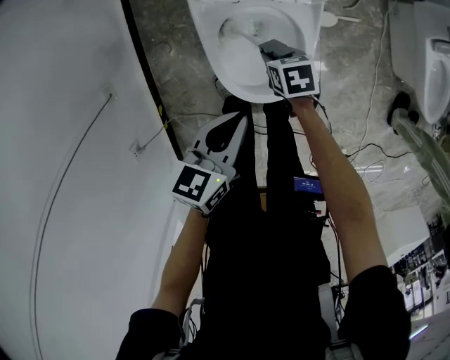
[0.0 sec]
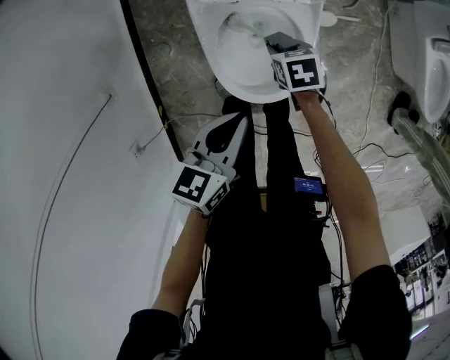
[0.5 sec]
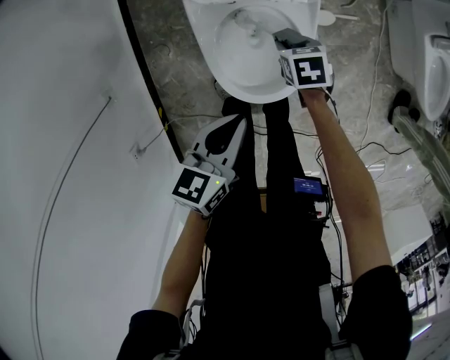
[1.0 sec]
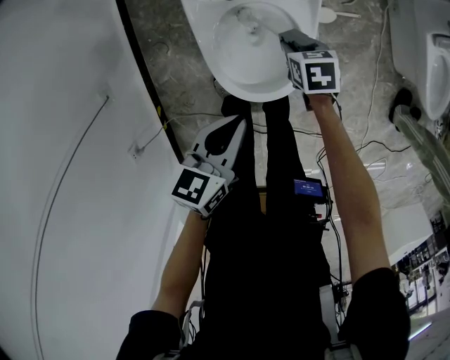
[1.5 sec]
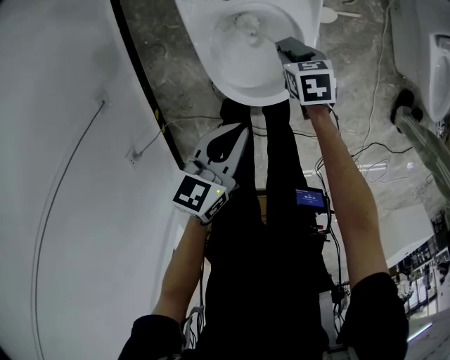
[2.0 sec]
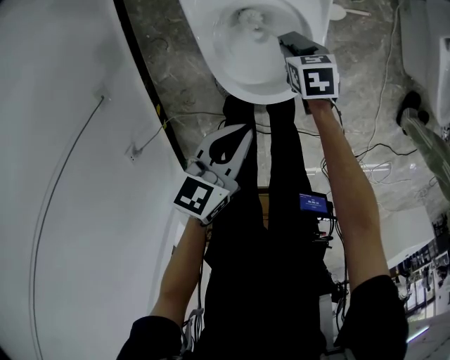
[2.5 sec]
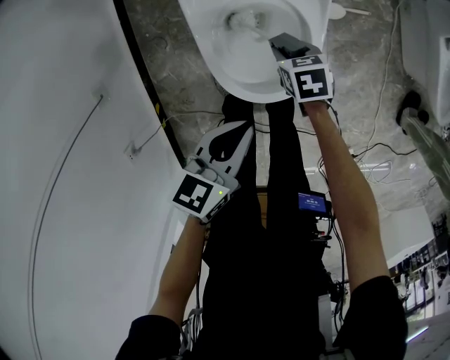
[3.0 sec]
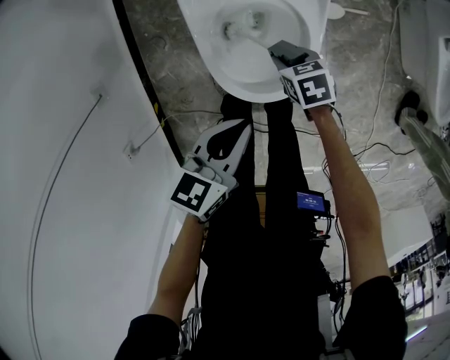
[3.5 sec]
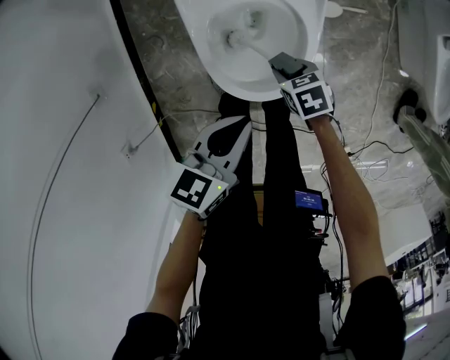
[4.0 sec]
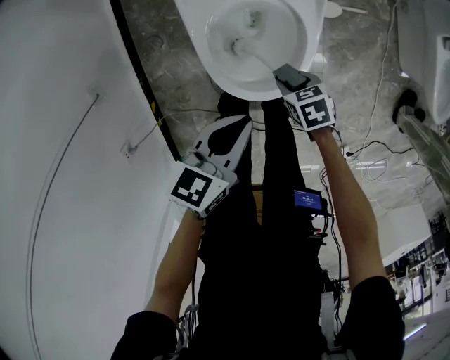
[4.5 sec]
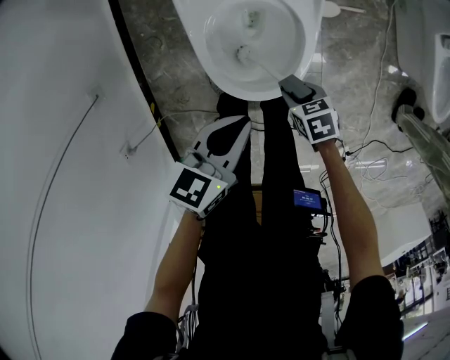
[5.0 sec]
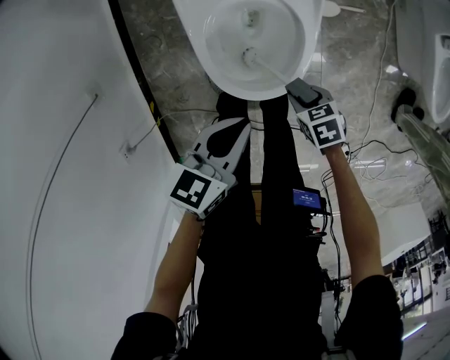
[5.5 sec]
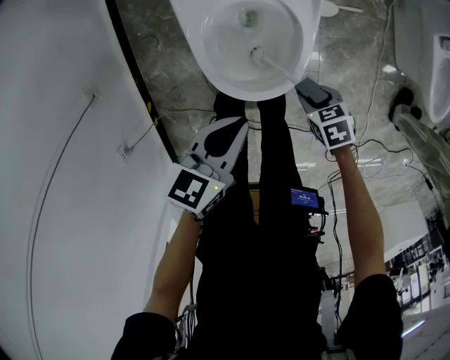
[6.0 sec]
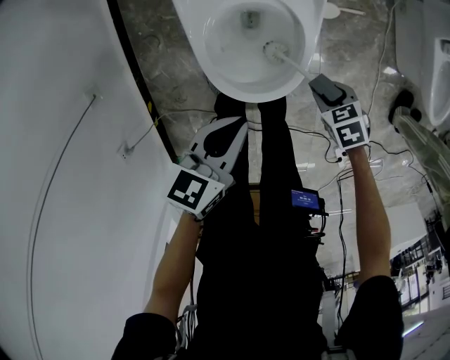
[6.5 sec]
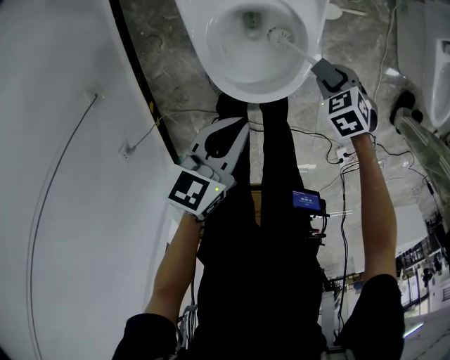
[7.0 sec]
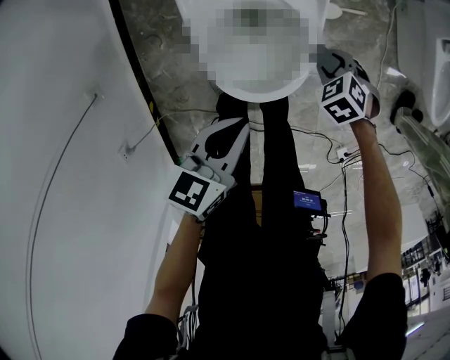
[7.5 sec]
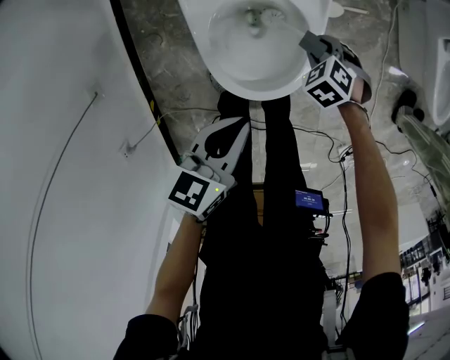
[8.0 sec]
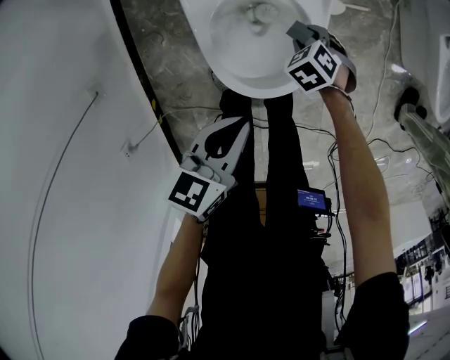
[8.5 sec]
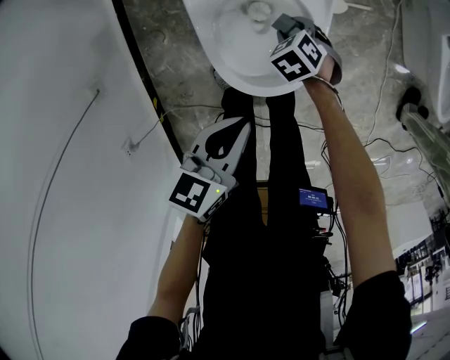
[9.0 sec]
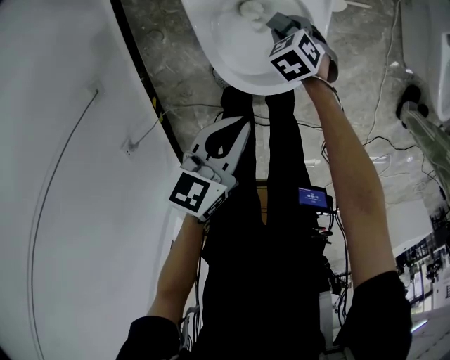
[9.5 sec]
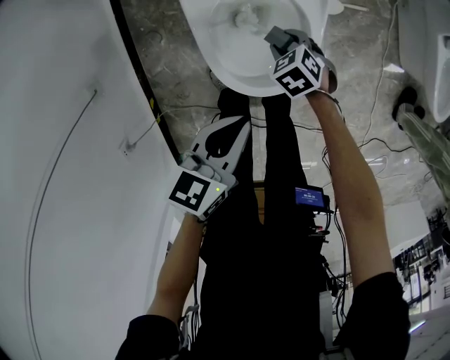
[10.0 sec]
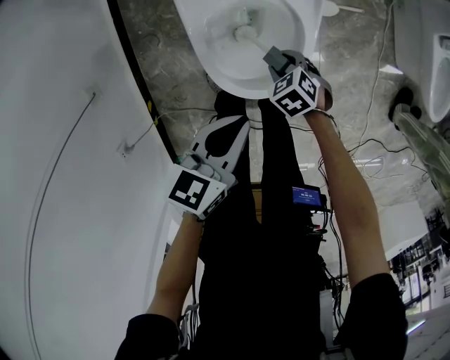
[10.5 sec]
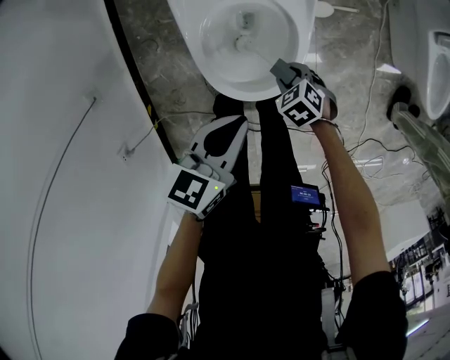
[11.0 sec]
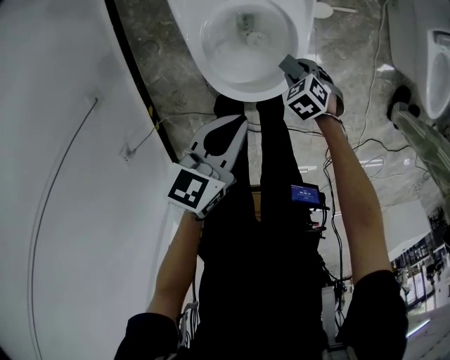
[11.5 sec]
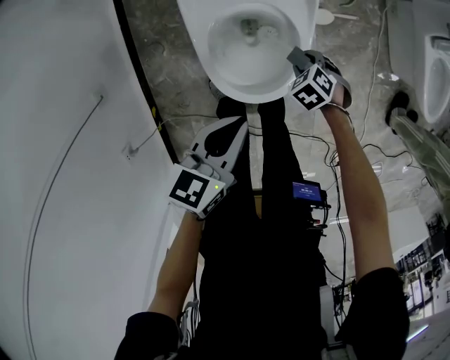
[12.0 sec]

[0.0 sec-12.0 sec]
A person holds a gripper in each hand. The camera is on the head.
0.0 sec to 2.0 sec: The right gripper travels to the right by some 5 cm.
2.0 sec to 4.0 sec: The right gripper goes some 5 cm backward.
4.0 sec to 6.0 sec: The right gripper is displaced backward and to the right by some 10 cm.
6.0 sec to 8.0 sec: The right gripper shifts by some 15 cm, and changes its angle by about 40 degrees.
8.0 sec to 10.0 sec: The right gripper changes place by roughly 10 cm.
10.0 sec to 12.0 sec: The right gripper ends up about 10 cm from where it was.

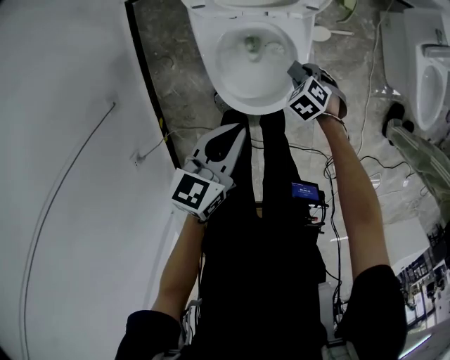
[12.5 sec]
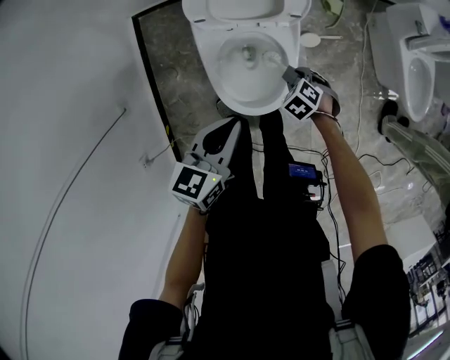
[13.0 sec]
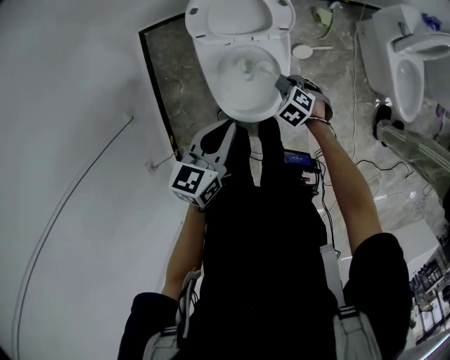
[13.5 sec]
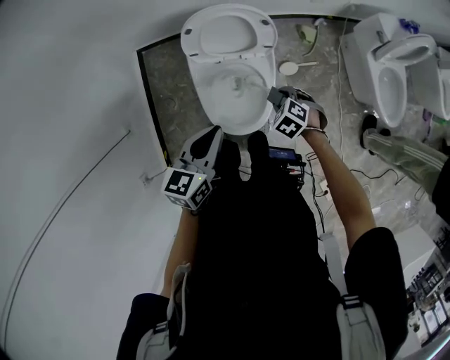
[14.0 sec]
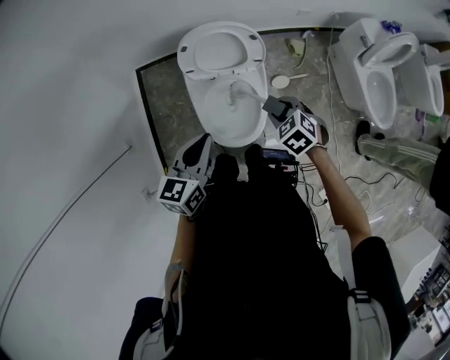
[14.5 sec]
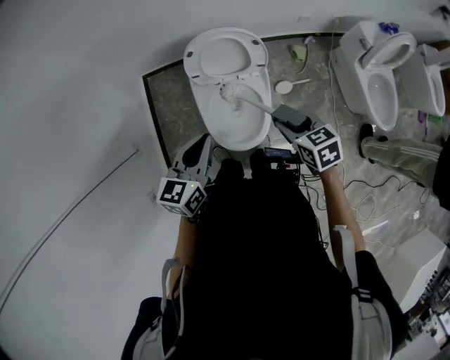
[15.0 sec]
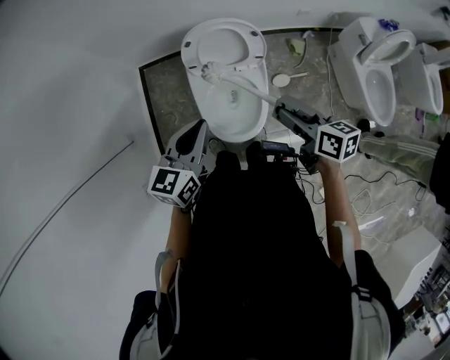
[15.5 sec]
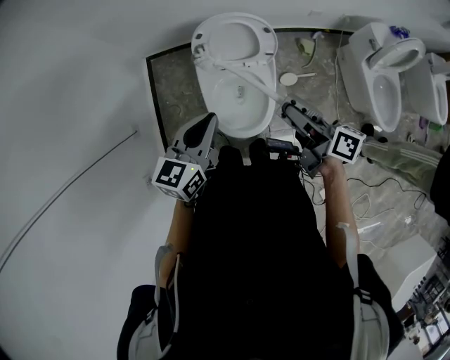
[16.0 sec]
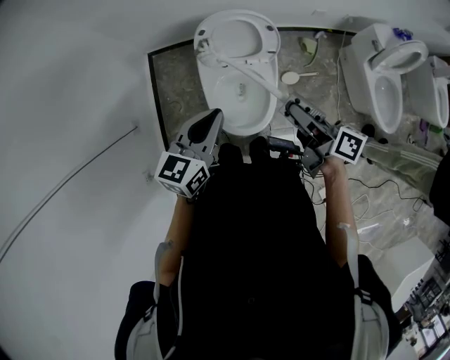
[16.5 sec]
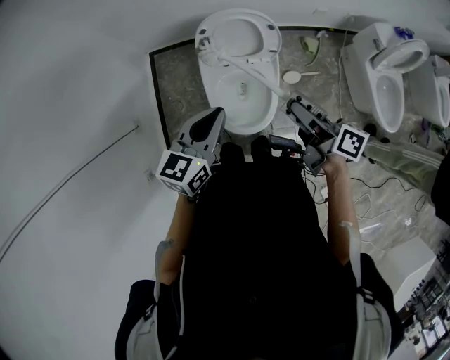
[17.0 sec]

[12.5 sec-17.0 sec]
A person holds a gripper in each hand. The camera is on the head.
12.5 sec to 14.5 sec: The right gripper moves upward, about 30 cm. The left gripper heads upward, covering some 20 cm.
14.5 sec to 17.0 sec: The left gripper goes roughly 5 cm upward, while the right gripper heads upward, covering roughly 15 cm, and angles its fingers upward, by roughly 50 degrees.

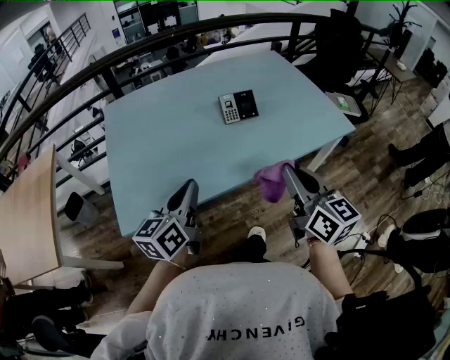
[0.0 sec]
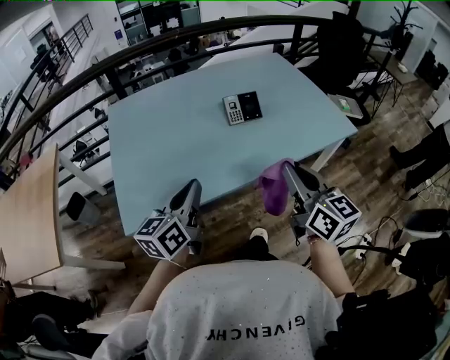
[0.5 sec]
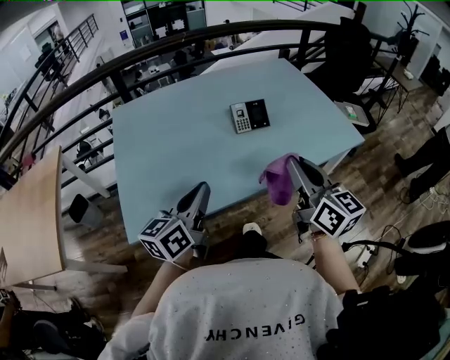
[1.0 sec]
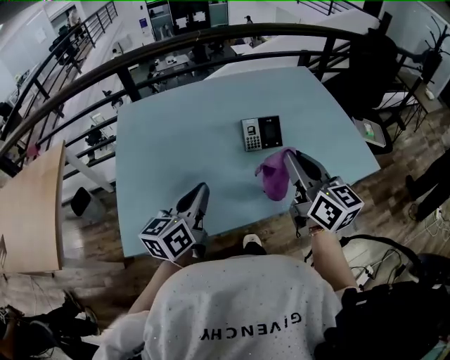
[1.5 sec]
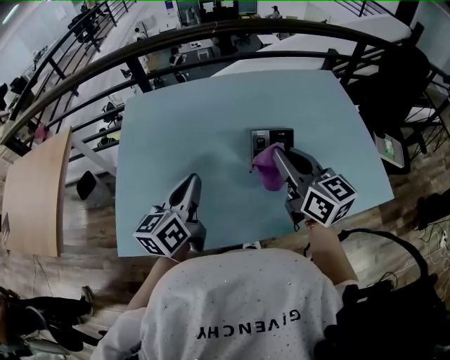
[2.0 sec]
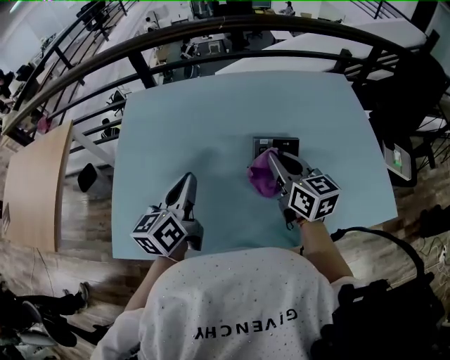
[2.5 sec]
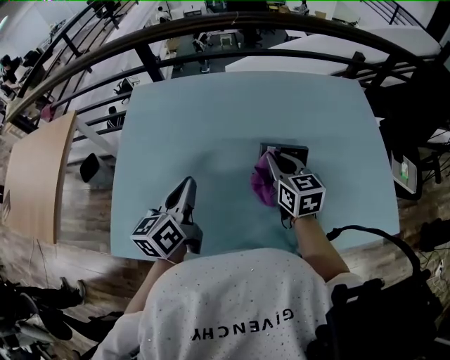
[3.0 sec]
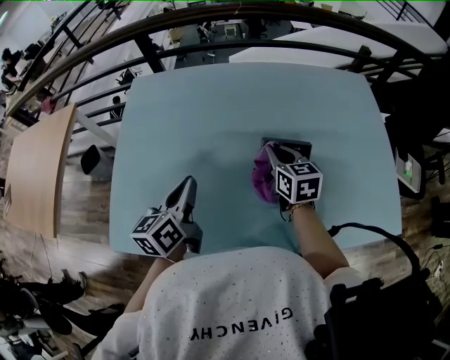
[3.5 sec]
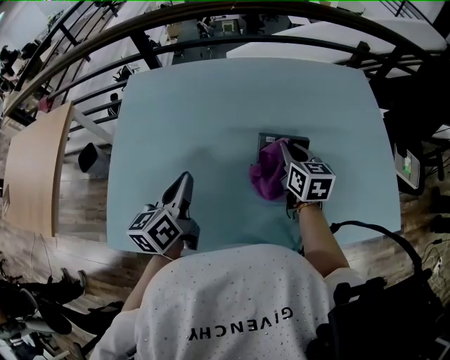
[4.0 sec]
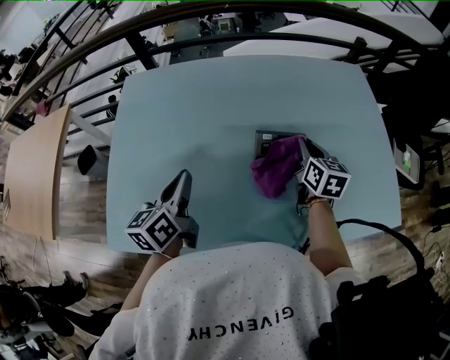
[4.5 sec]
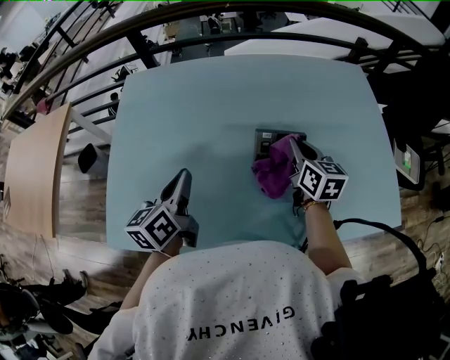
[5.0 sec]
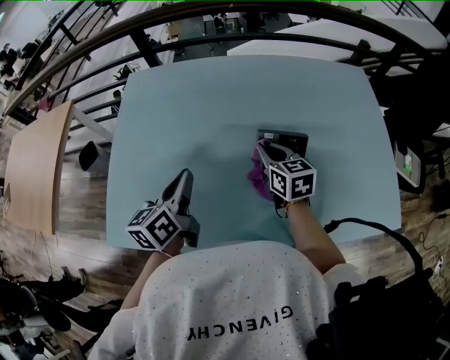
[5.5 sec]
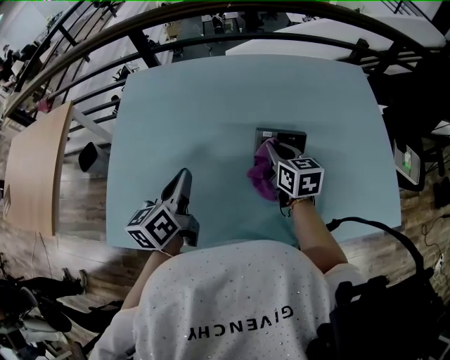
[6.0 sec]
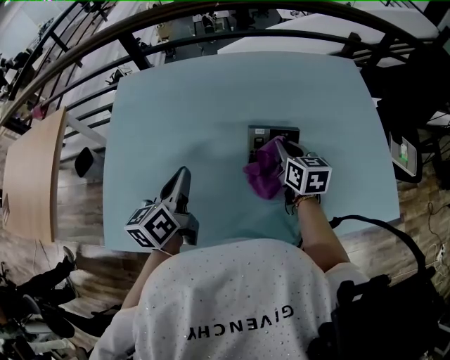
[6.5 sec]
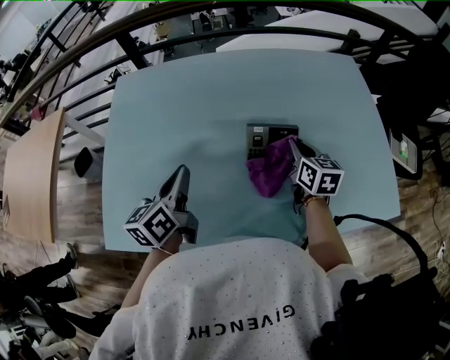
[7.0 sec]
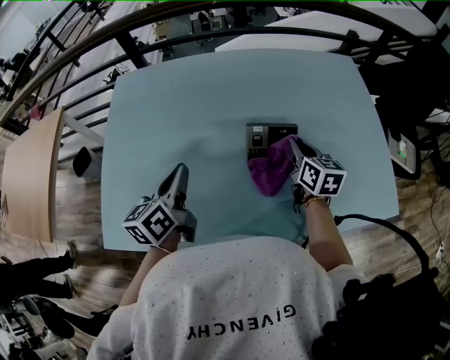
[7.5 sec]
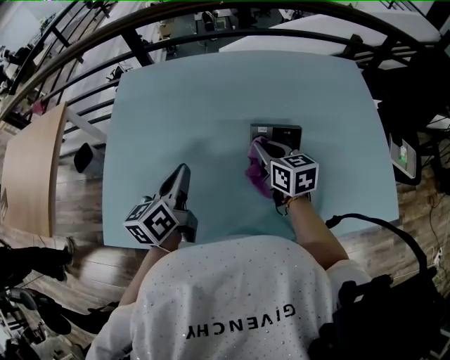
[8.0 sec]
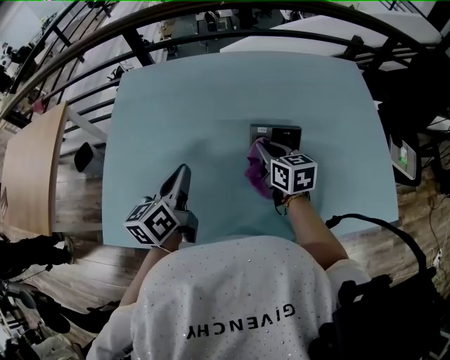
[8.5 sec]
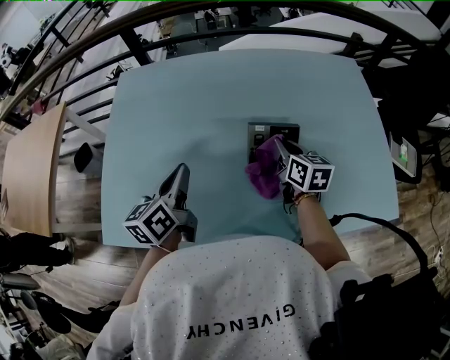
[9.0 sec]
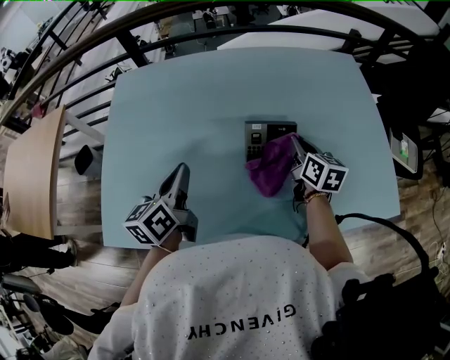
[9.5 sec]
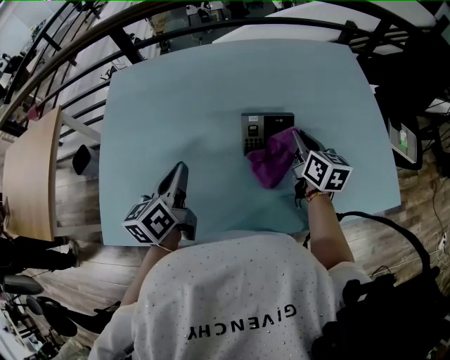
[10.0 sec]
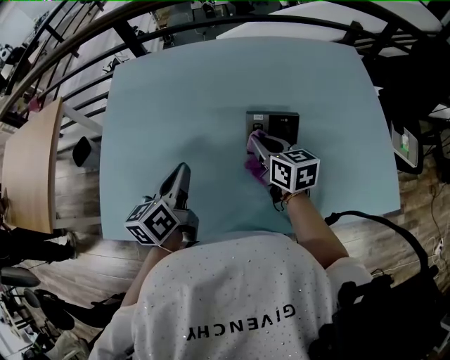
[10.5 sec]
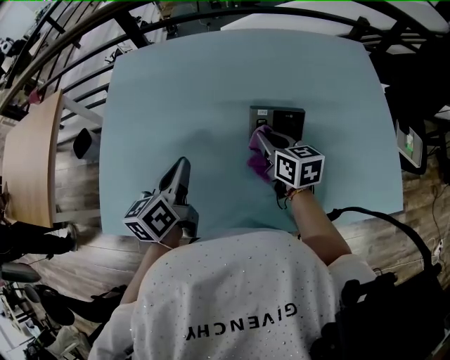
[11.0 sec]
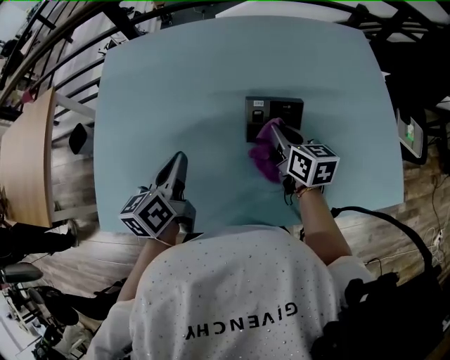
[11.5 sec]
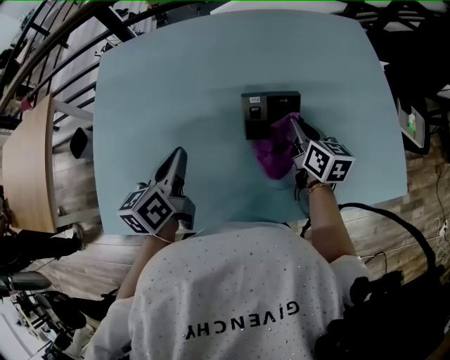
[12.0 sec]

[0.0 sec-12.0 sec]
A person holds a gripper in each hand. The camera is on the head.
0.0 sec to 2.0 sec: The two grippers go approximately 25 cm forward. The right gripper rotates approximately 20 degrees.
2.0 sec to 4.0 sec: The right gripper is displaced downward and forward by roughly 20 cm, and changes its angle by approximately 20 degrees. The left gripper shifts about 10 cm downward and forward.
4.0 sec to 6.0 sec: The right gripper goes to the right and returns, approximately 5 cm each way.
6.0 sec to 8.0 sec: The right gripper travels to the right and back again, about 10 cm each way.
8.0 sec to 10.0 sec: The right gripper goes roughly 15 cm to the right, and turns by roughly 20 degrees.
10.0 sec to 12.0 sec: The right gripper travels to the left and back again, roughly 15 cm each way.
